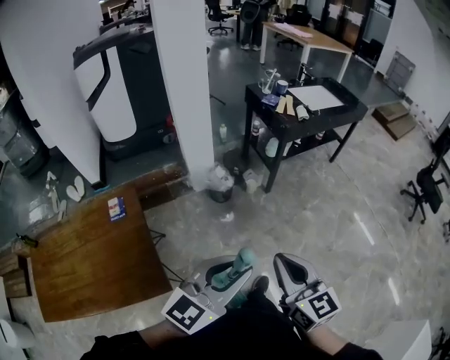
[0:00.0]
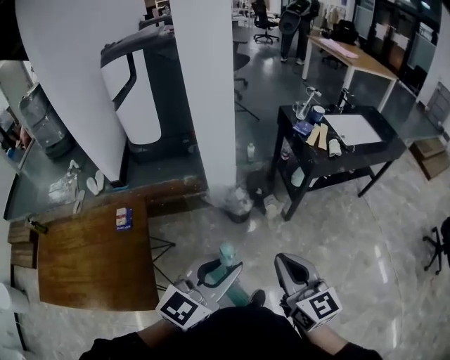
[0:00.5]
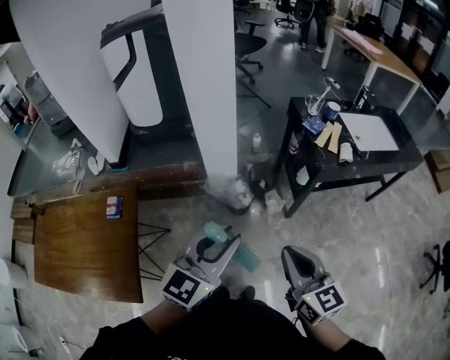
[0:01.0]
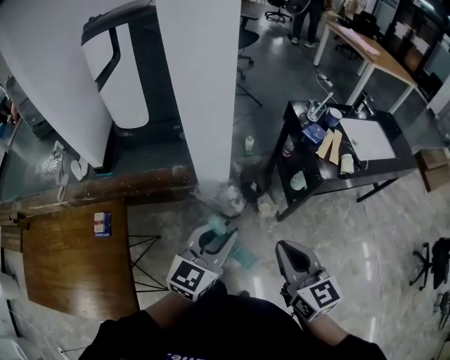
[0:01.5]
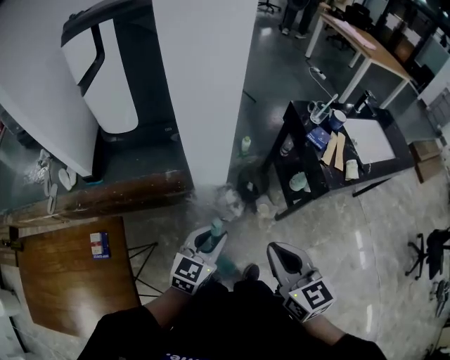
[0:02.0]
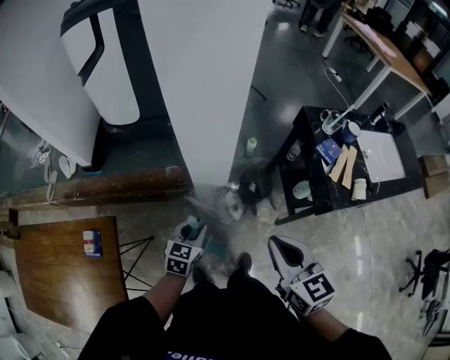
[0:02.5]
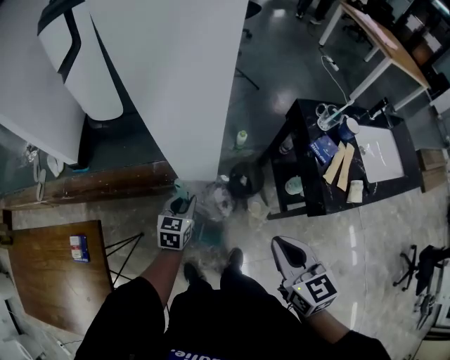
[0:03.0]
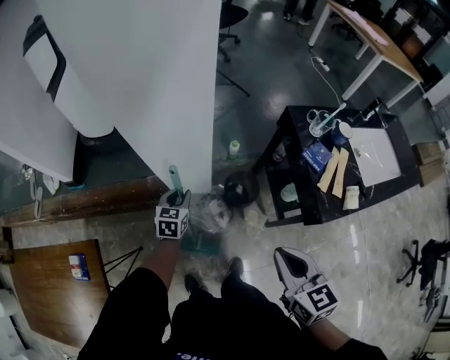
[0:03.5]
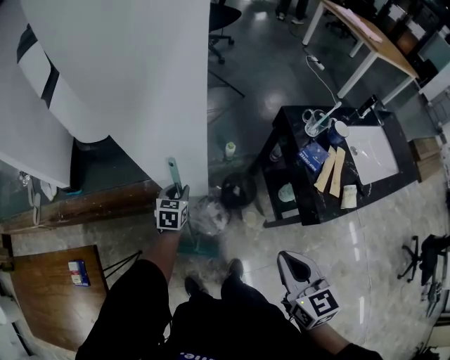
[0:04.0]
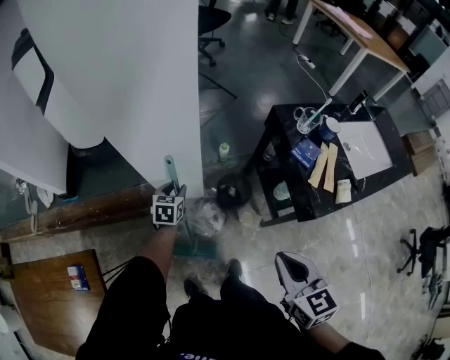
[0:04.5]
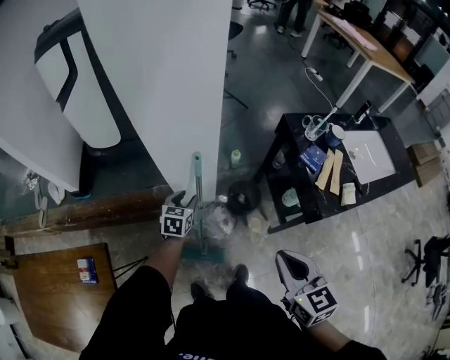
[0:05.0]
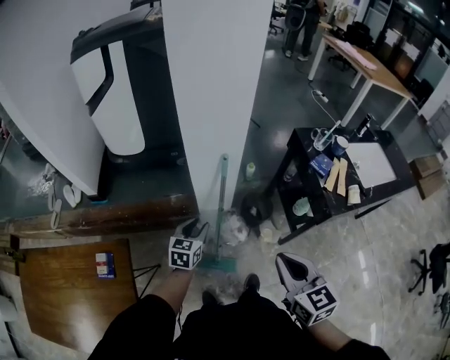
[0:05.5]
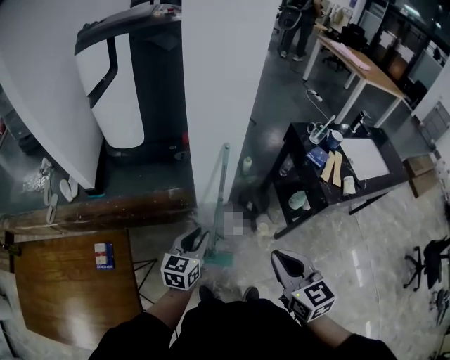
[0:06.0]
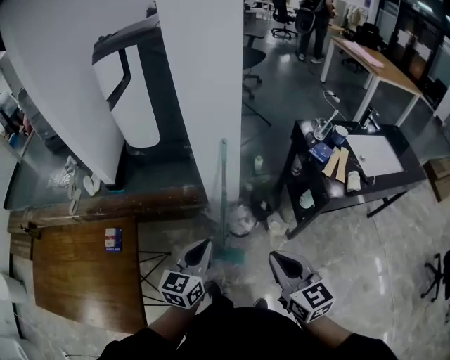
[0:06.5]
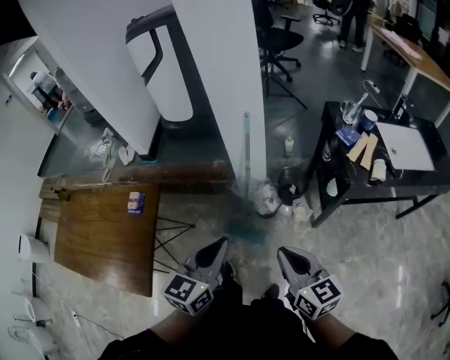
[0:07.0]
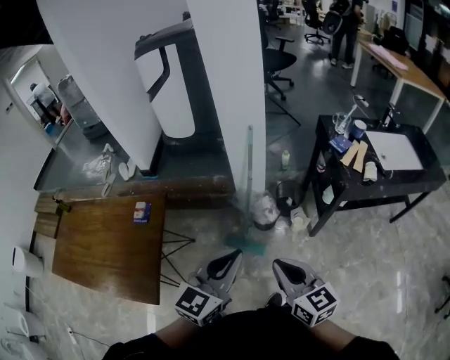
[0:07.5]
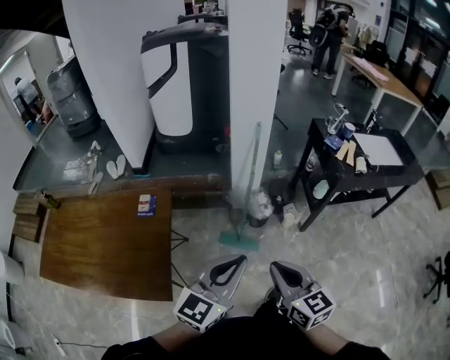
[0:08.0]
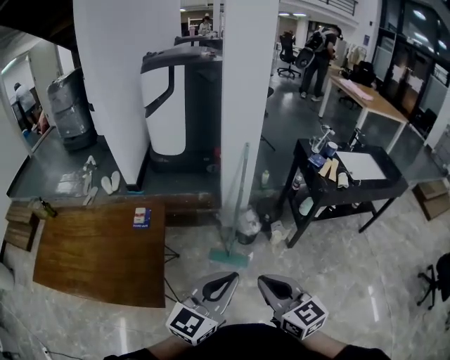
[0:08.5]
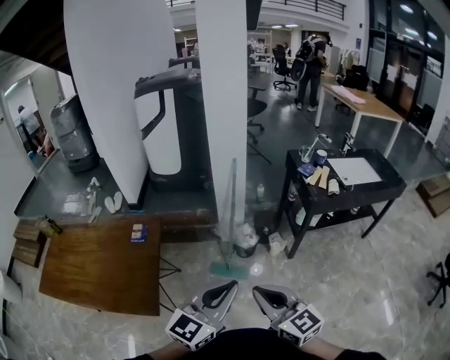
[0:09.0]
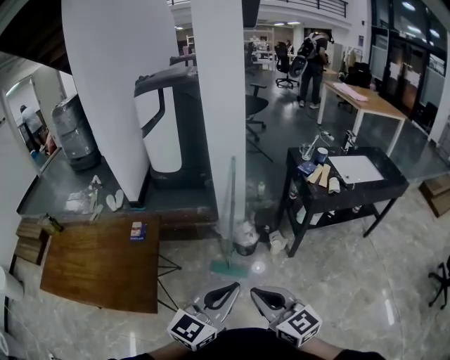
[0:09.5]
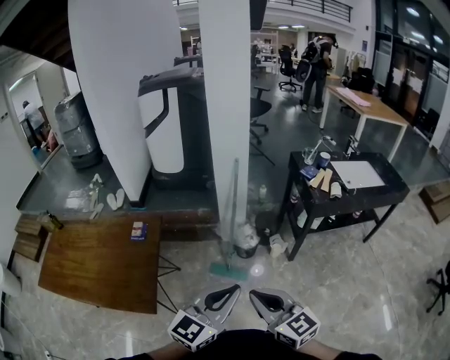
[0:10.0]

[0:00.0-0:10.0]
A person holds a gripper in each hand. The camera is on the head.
0:00.0 to 0:02.0: The pair of grippers is taken forward, approximately 40 cm. The left gripper changes its angle by approximately 30 degrees.
0:02.0 to 0:04.0: The right gripper travels to the right, forward and downward by about 20 cm, while the left gripper goes some 35 cm forward and downward, and swivels roughly 30 degrees.
0:04.0 to 0:06.0: The right gripper moves to the left and backward, roughly 20 cm. The left gripper travels backward and upward by roughly 30 cm, and swivels approximately 20 degrees.
0:06.0 to 0:08.0: The right gripper shifts roughly 25 cm backward; the left gripper is displaced backward and upward by approximately 40 cm, rotates some 20 degrees, and closes.
0:08.0 to 0:10.0: The right gripper goes about 10 cm backward and to the right. The left gripper goes approximately 10 cm to the right and backward.

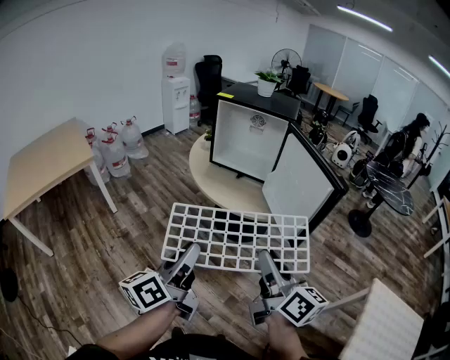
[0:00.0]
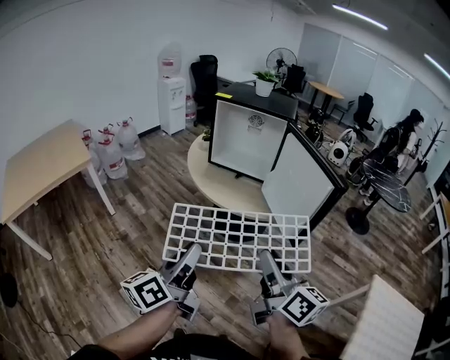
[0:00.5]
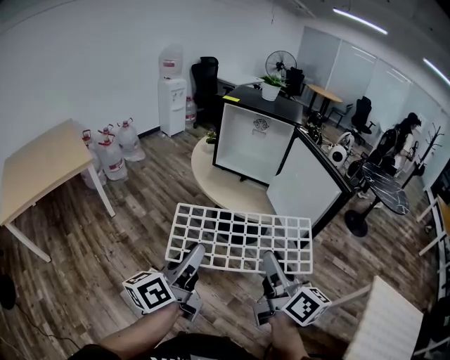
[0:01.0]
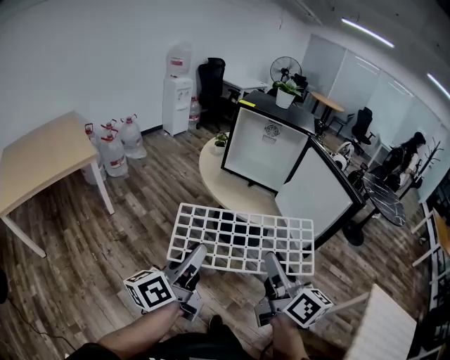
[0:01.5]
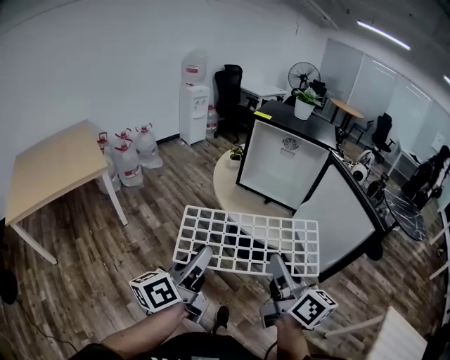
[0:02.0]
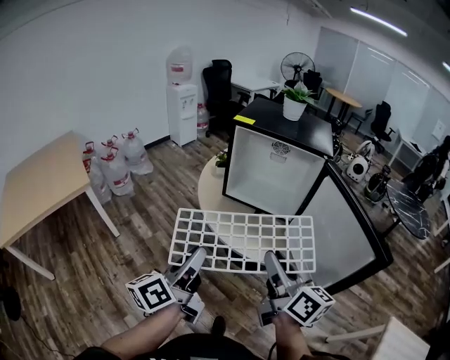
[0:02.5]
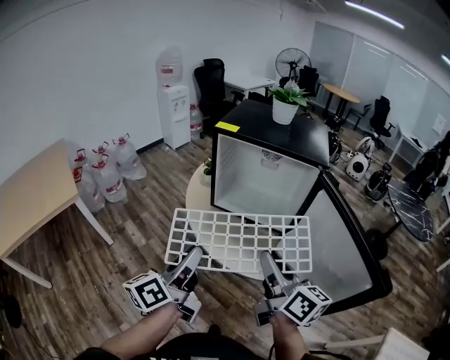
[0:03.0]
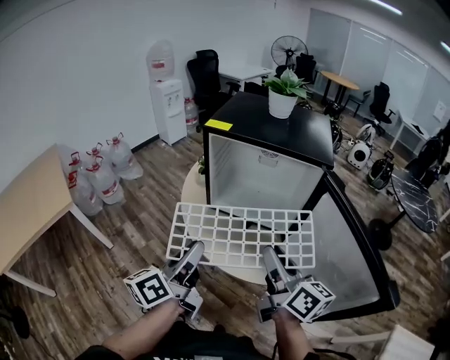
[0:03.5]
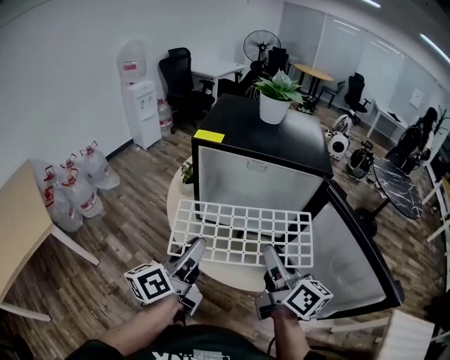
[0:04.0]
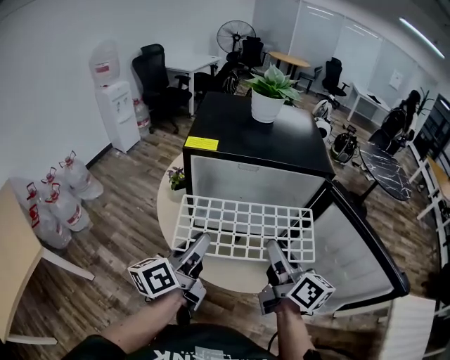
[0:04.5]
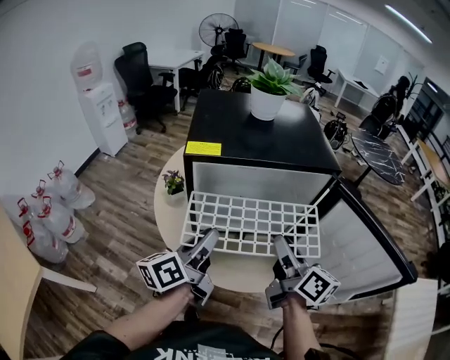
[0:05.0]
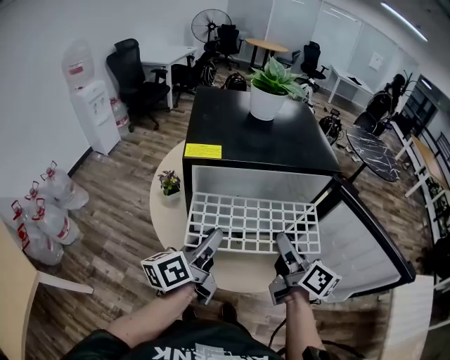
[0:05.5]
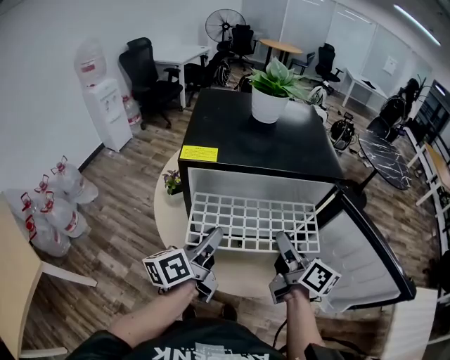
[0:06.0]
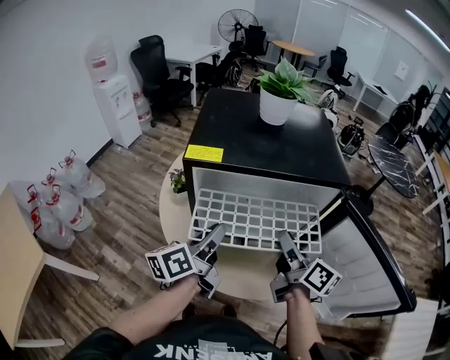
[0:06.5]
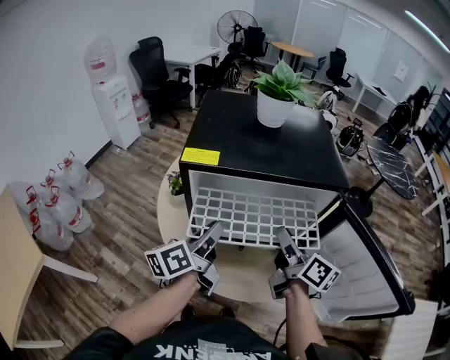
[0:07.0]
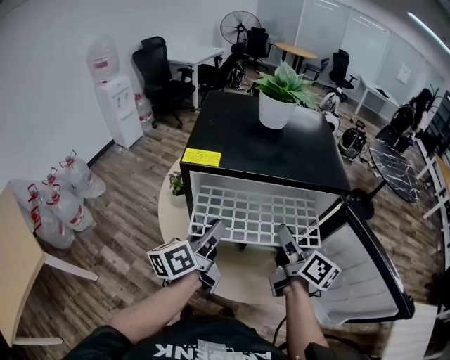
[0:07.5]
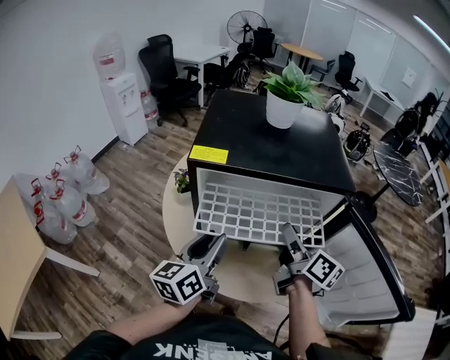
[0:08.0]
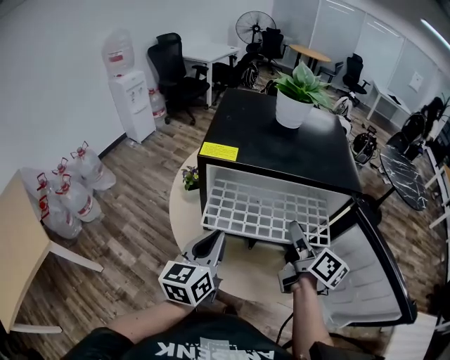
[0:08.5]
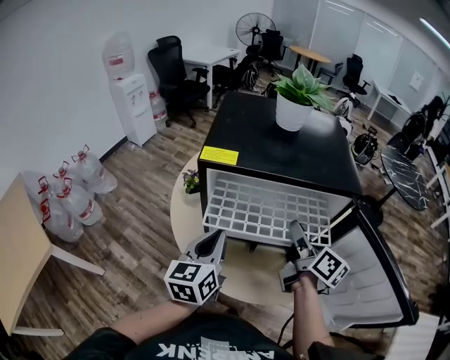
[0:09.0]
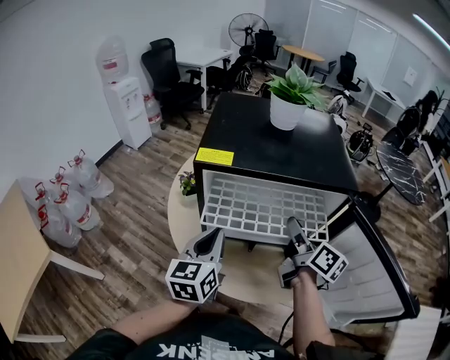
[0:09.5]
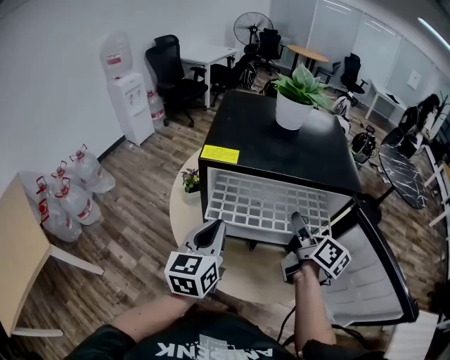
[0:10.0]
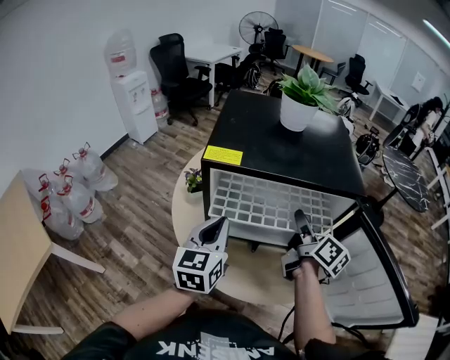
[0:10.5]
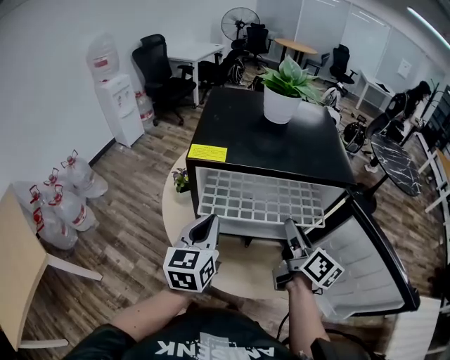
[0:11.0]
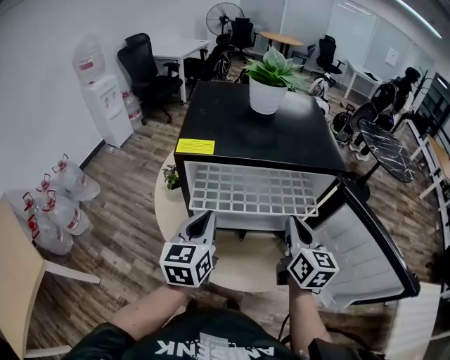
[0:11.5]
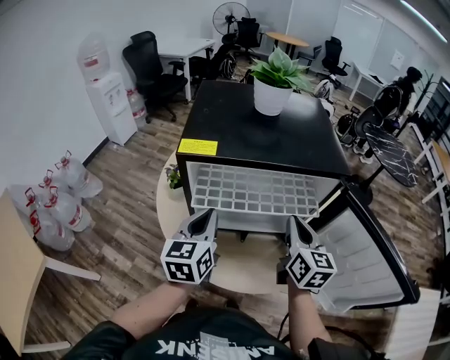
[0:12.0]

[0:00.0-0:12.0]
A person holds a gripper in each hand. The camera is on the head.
0:00.0 to 0:02.0: The right gripper travels forward and to the left by roughly 15 cm; the left gripper moves to the left and forward, approximately 15 cm.
0:02.0 to 0:04.0: Both grippers move forward, about 35 cm.
0:04.0 to 0:06.0: The right gripper heads forward and downward, covering some 15 cm, and changes its angle by some 20 degrees. The left gripper is displaced forward by approximately 15 cm.
0:06.0 to 0:08.0: The right gripper ends up roughly 10 cm from where it was, and rotates approximately 30 degrees. The left gripper rotates roughly 20 degrees.
0:08.0 to 0:10.0: The left gripper rotates roughly 20 degrees, and closes up. The right gripper shifts by some 5 cm, and rotates some 20 degrees.
0:10.0 to 0:12.0: The right gripper turns by about 30 degrees, and closes its fingers.

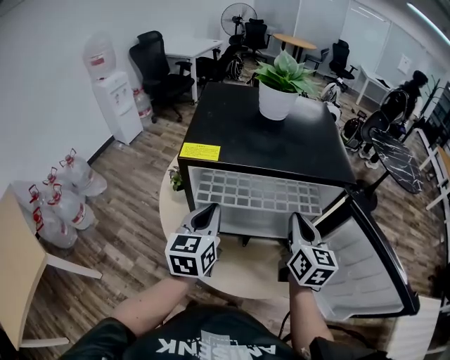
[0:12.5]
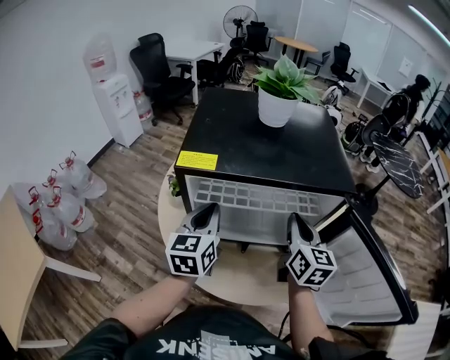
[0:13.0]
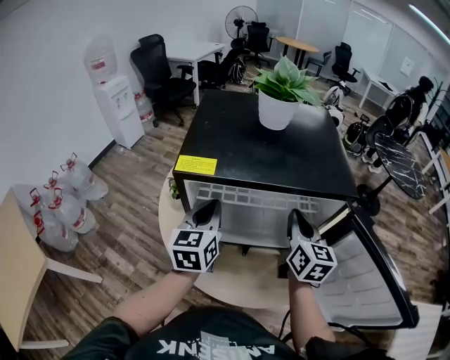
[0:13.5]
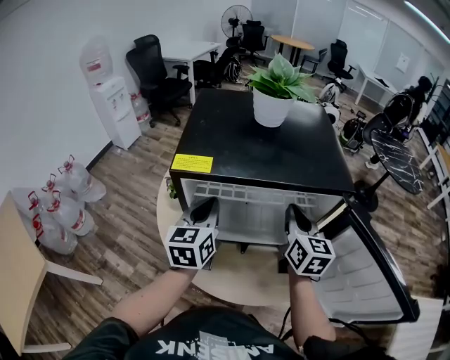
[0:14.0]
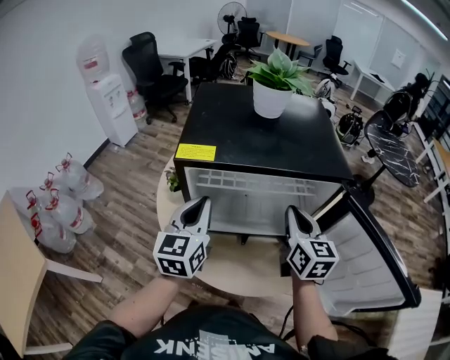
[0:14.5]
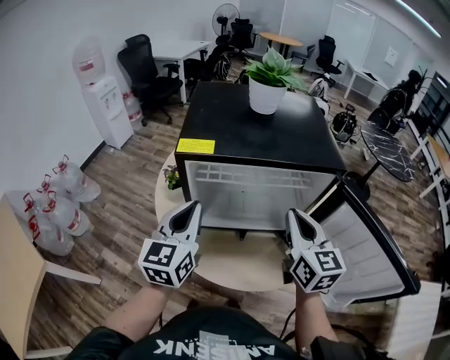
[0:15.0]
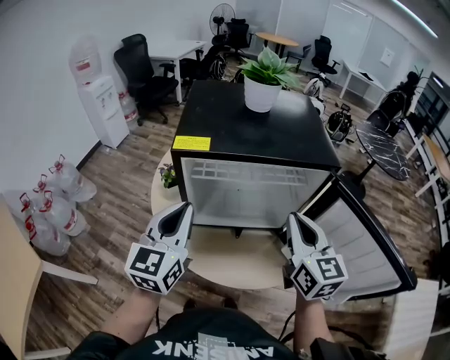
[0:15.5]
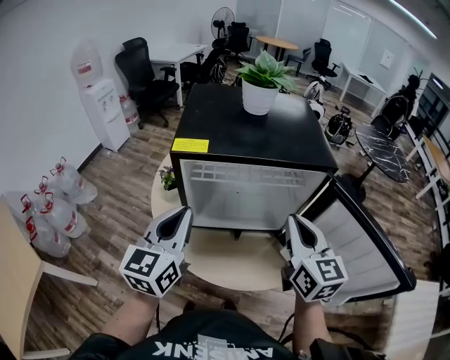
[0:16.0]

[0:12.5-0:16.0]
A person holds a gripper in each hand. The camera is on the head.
0:12.5 to 0:14.5: The grippers make only small movements.
0:14.5 to 0:16.0: The right gripper moves backward and upward, approximately 10 cm, while the left gripper moves backward, about 10 cm.

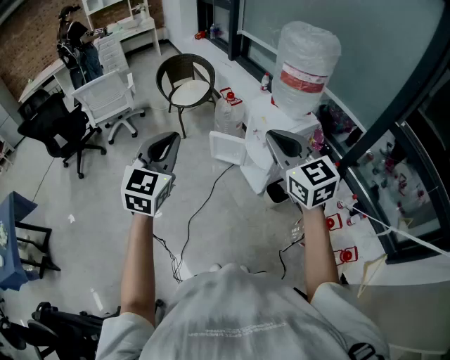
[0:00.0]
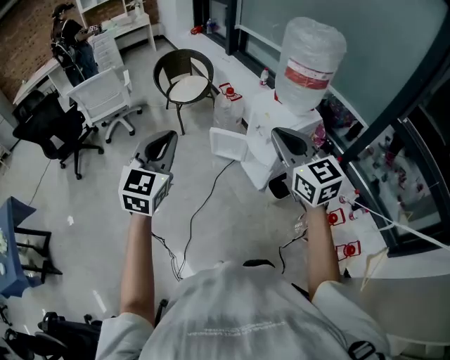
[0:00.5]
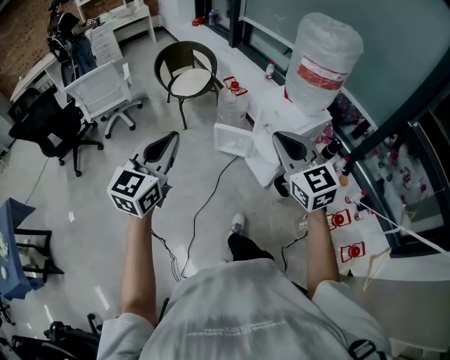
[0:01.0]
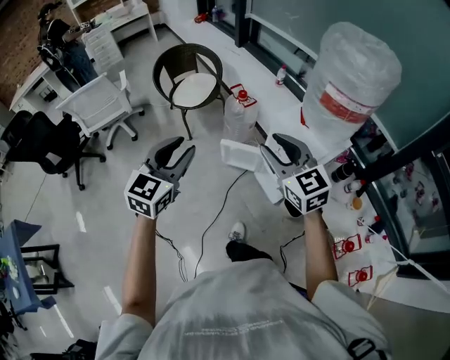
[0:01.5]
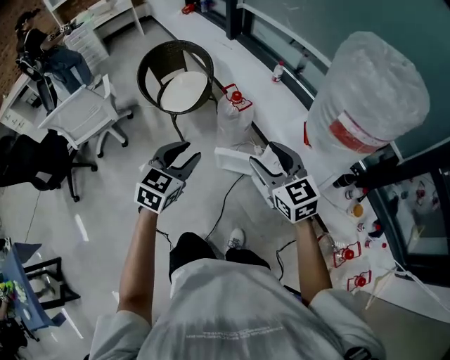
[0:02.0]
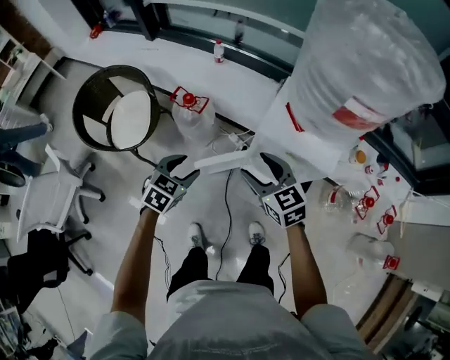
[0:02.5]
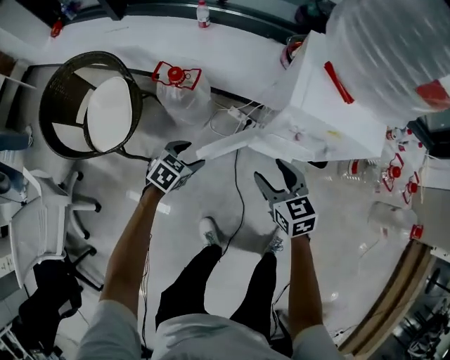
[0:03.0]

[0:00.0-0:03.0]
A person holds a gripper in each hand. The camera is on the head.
0:00.0 to 0:01.5: Both grippers move forward and downward, some 25 cm. The left gripper opens, while the right gripper opens its fingers.
0:01.5 to 0:03.0: Both grippers travel together downward, some 40 cm. The left gripper tips its fingers downward by some 40 degrees, and opens its fingers. Meanwhile the right gripper swivels some 50 degrees, and opens.
